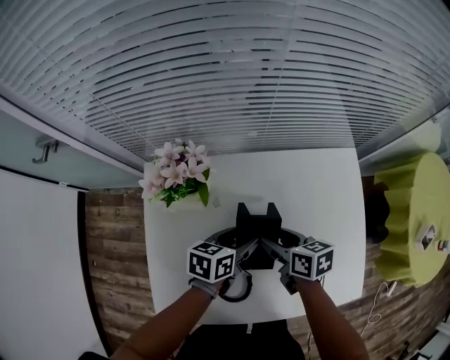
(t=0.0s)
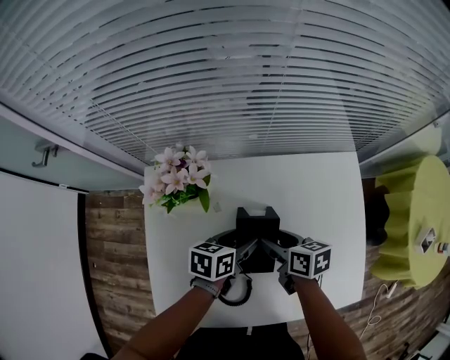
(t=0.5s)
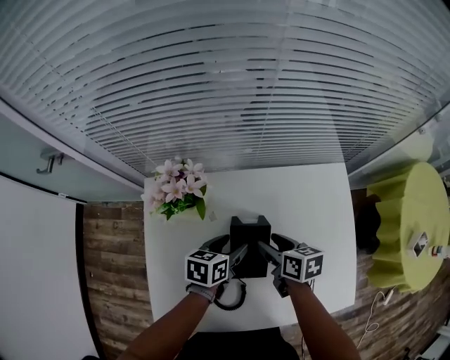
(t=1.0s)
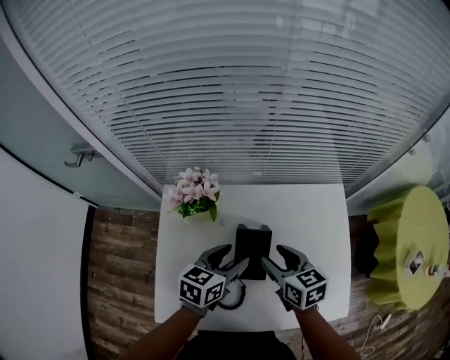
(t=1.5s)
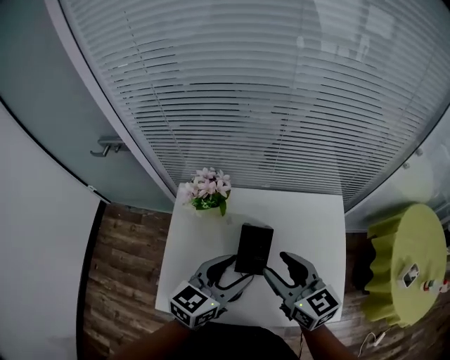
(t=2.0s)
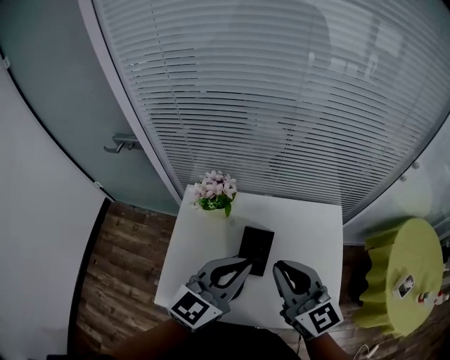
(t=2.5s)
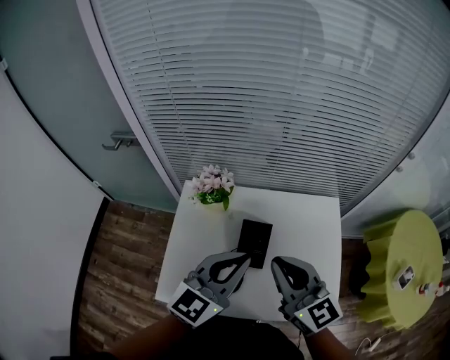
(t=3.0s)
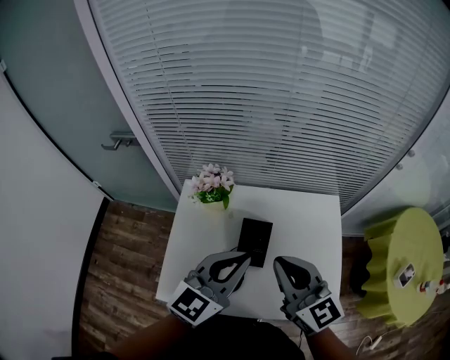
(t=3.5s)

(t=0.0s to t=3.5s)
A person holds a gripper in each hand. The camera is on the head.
t=0.0s - t=2.0s: The left gripper shifts some 25 cm upward and backward, and swivels about 30 degrees. The right gripper shifts roughly 25 cm upward, and rotates about 40 degrees.
t=2.0s - t=3.5s: The left gripper shifts approximately 10 cm upward, rotates about 20 degrees, and closes up; the right gripper moves upward and backward, approximately 10 cm, and closes up.

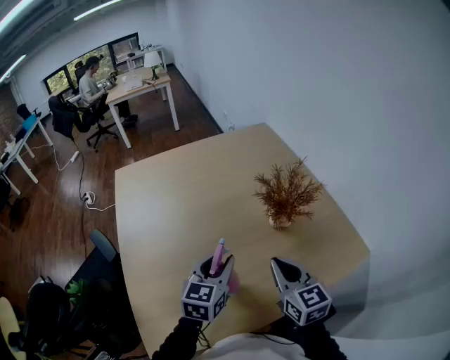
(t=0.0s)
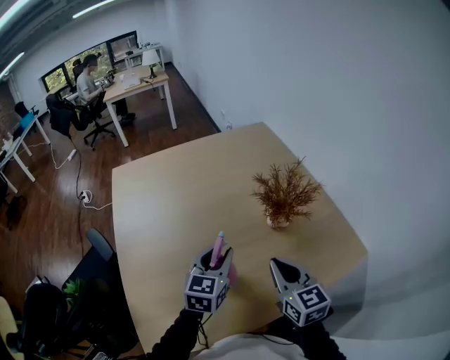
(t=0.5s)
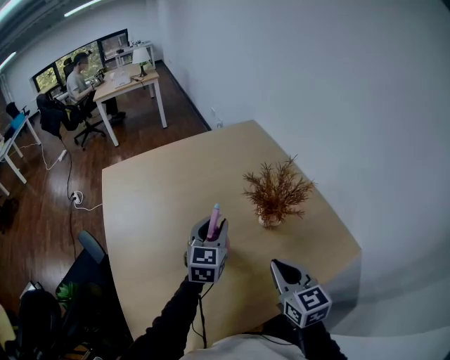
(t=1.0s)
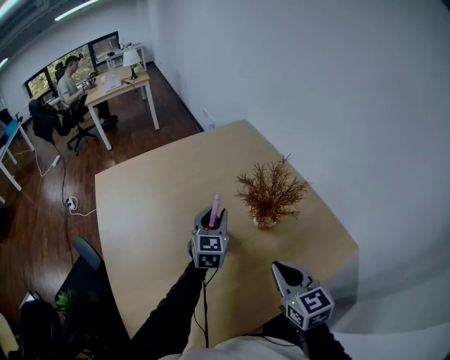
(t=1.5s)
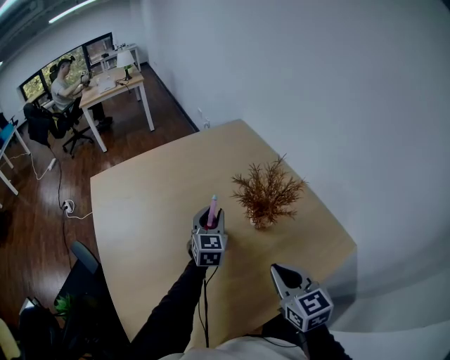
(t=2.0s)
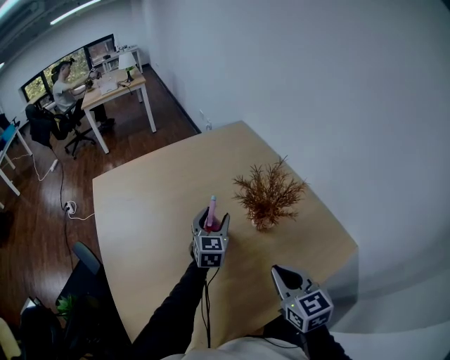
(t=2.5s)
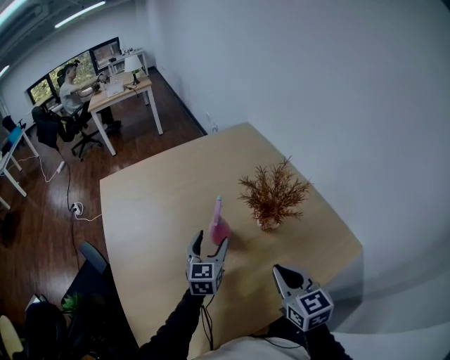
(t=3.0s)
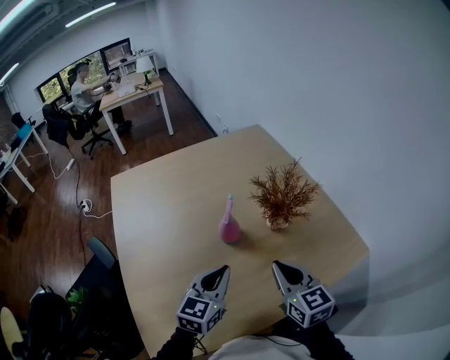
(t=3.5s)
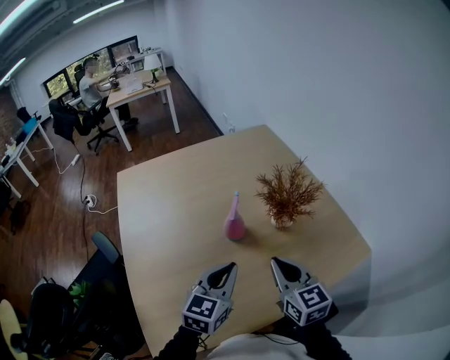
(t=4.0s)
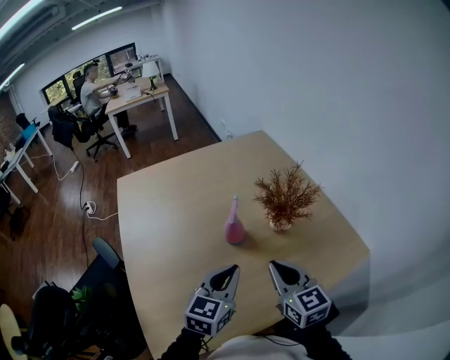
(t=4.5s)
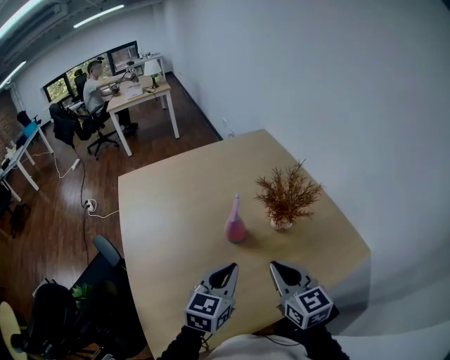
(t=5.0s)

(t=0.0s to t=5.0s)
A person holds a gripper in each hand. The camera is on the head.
t=0.0s - t=2.5s: The left gripper shifts roughly 20 cm forward, and opens its fingers.
t=2.5s - t=5.0s: The right gripper travels to the left by roughly 5 cm; the left gripper moves backward, approximately 25 cm, and closes up.

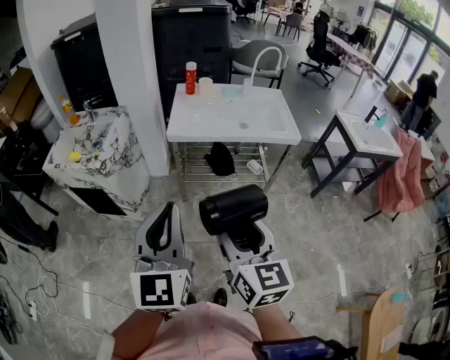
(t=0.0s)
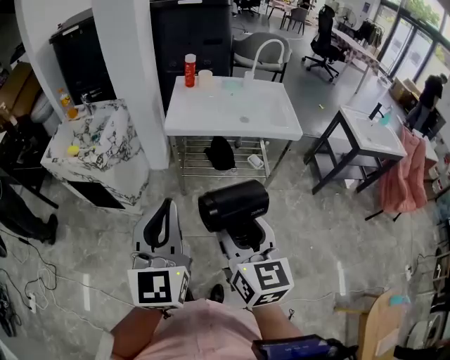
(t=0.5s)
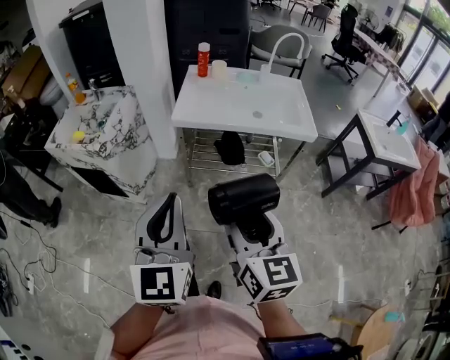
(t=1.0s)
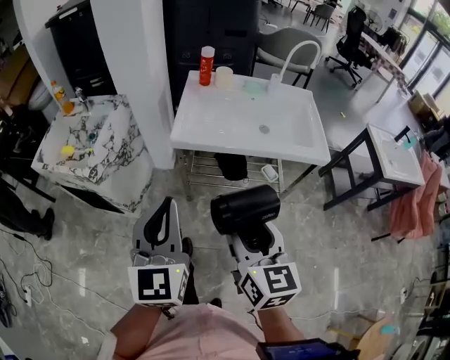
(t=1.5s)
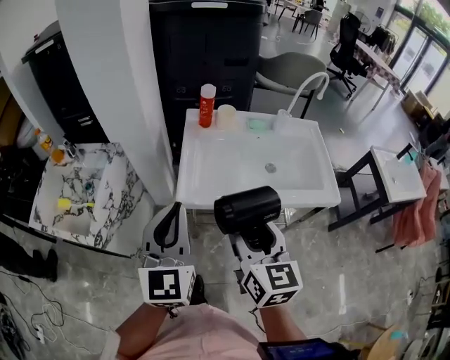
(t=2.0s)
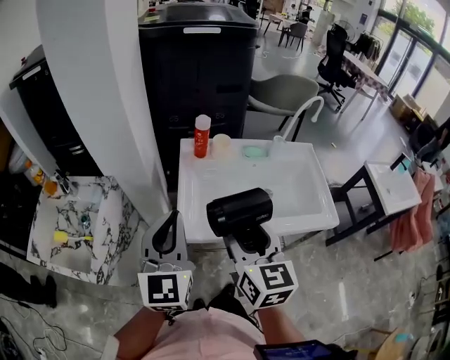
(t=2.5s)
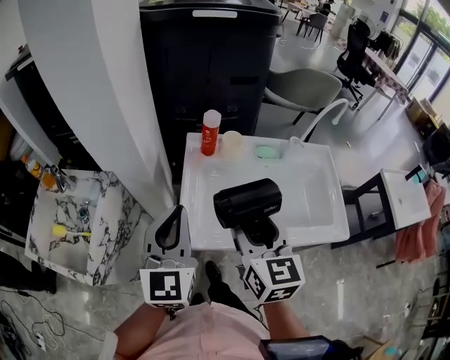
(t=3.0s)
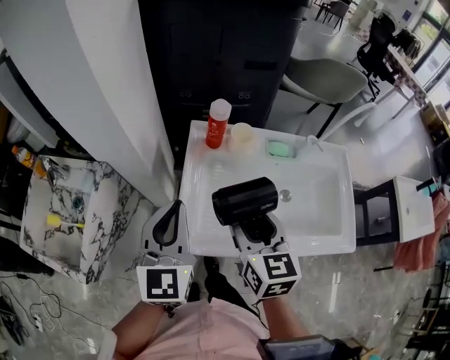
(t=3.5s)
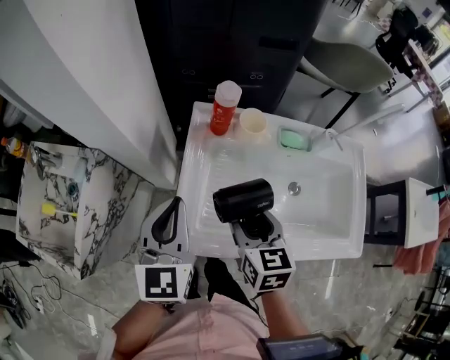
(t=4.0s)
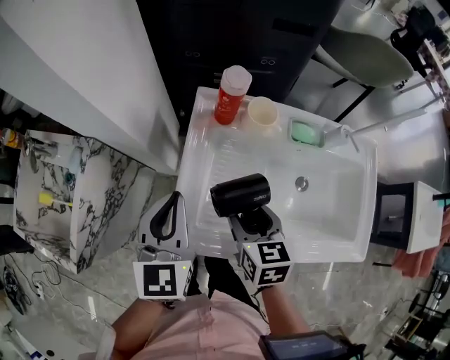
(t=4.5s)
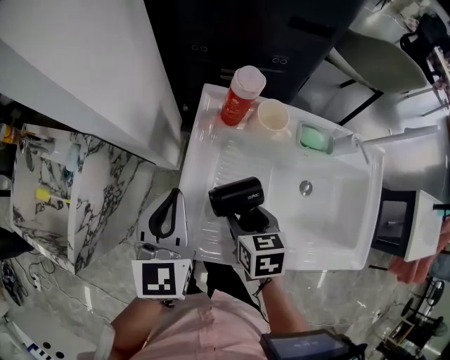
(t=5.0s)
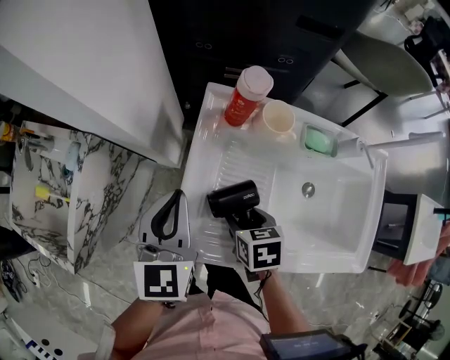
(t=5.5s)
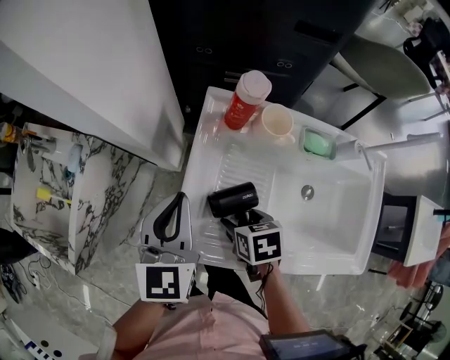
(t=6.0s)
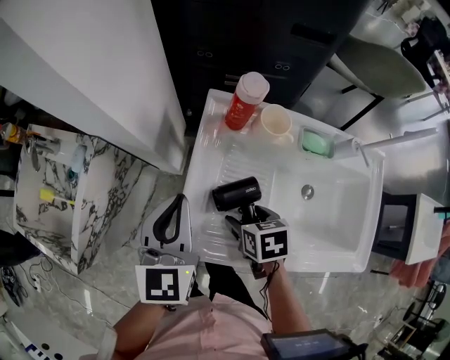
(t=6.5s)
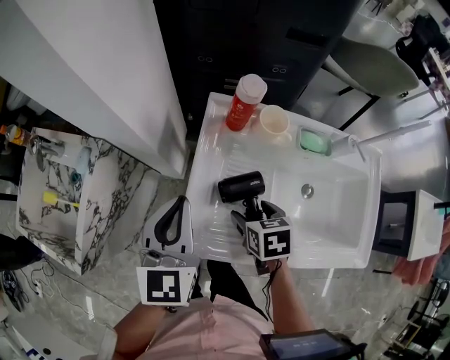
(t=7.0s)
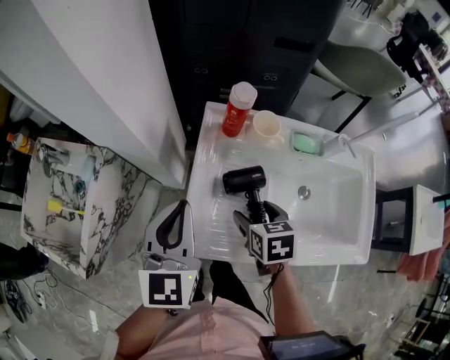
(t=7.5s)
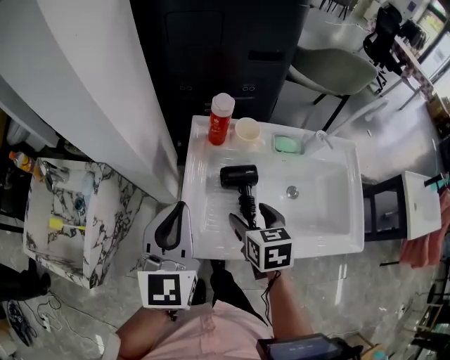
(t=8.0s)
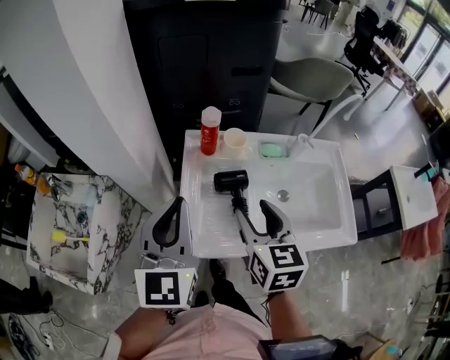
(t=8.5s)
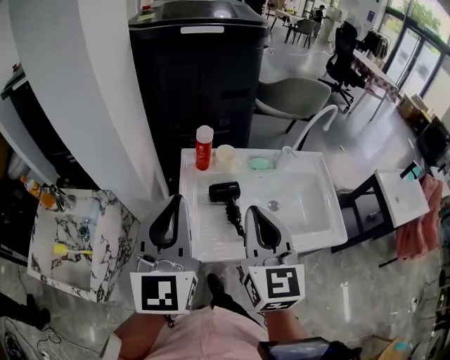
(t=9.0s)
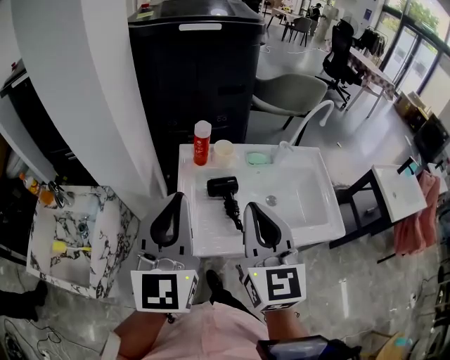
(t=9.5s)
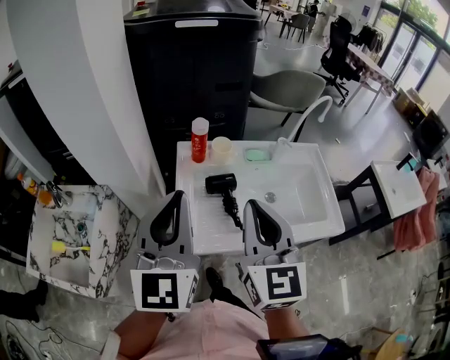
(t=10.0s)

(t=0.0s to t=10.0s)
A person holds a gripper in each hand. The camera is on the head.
t=0.0s - t=2.0s: Both grippers travel together forward, some 40 cm.
t=2.0s - t=4.0s: The two grippers go approximately 25 cm forward and downward. The right gripper changes its angle by some 20 degrees.
t=4.0s - t=6.0s: The left gripper shifts by approximately 5 cm; the right gripper goes approximately 15 cm downward, and turns by approximately 40 degrees.
t=6.0s - t=8.0s: The left gripper is displaced upward and backward by approximately 10 cm; the right gripper travels upward by about 10 cm, and changes its angle by about 30 degrees.
t=8.0s - t=10.0s: The left gripper is displaced upward and backward by about 15 cm, while the right gripper is displaced upward by some 25 cm, tilts its fingers roughly 40 degrees upward, and closes up.

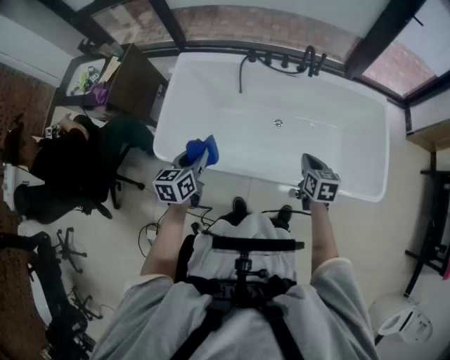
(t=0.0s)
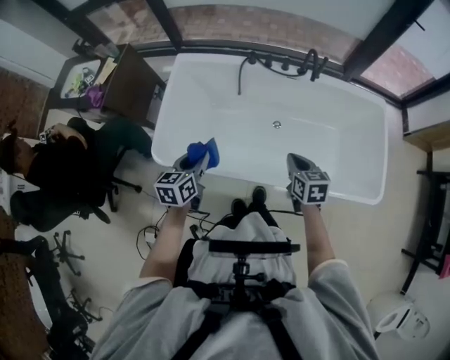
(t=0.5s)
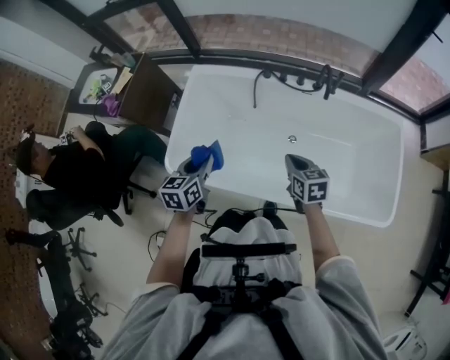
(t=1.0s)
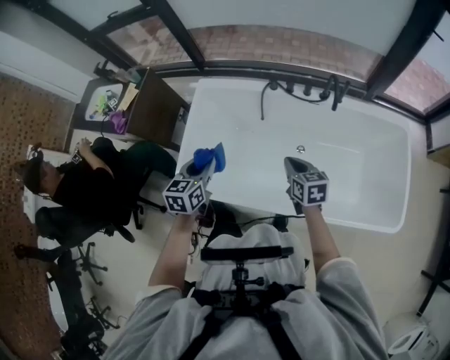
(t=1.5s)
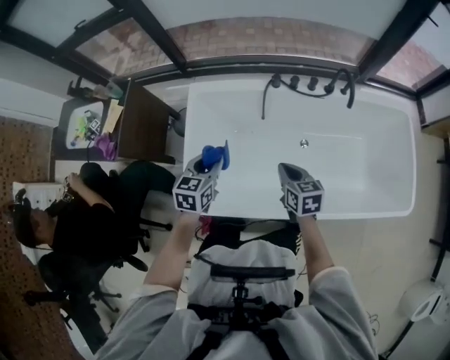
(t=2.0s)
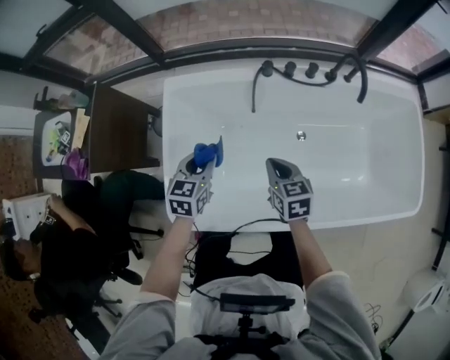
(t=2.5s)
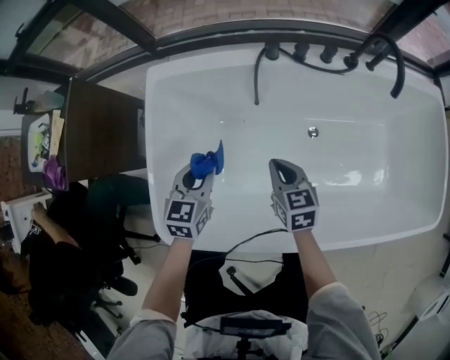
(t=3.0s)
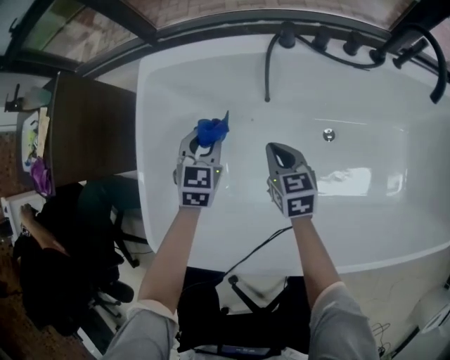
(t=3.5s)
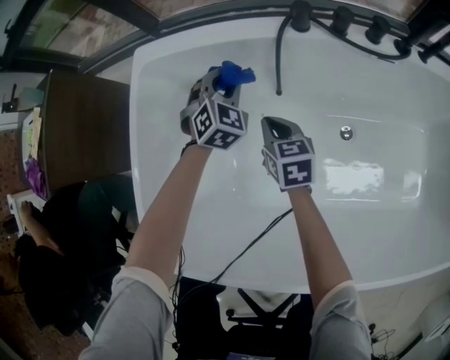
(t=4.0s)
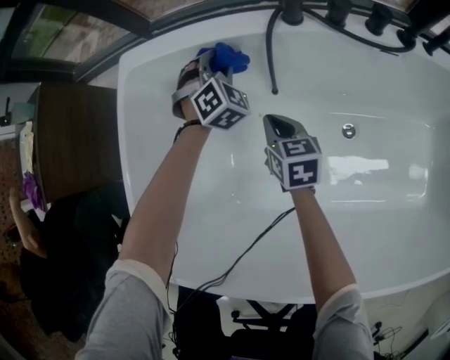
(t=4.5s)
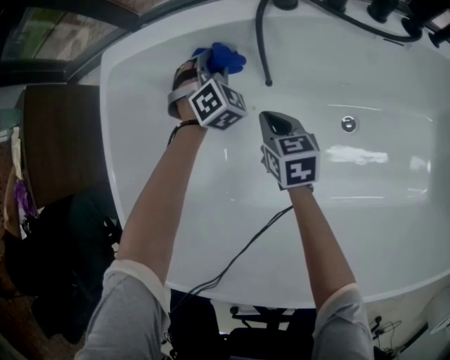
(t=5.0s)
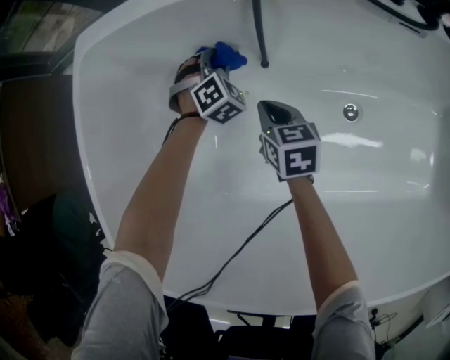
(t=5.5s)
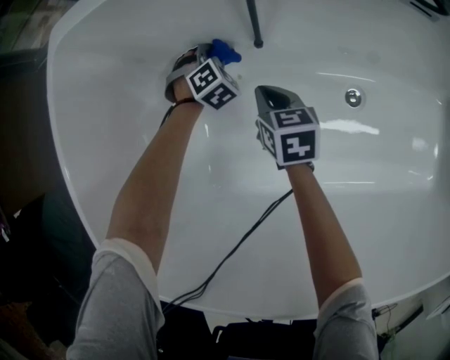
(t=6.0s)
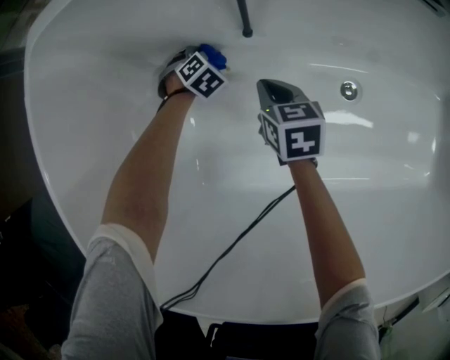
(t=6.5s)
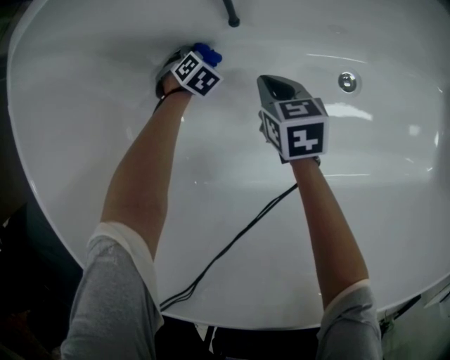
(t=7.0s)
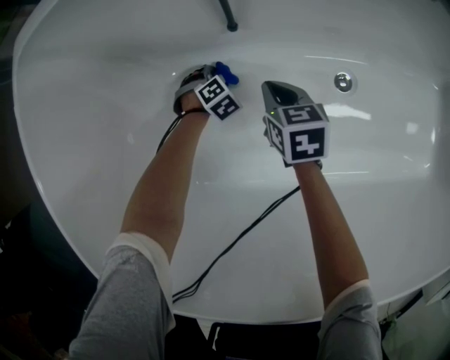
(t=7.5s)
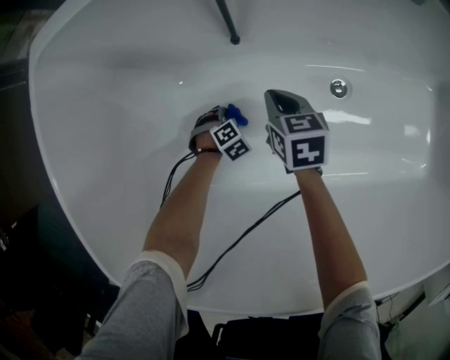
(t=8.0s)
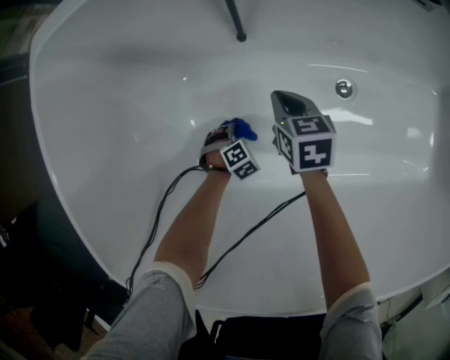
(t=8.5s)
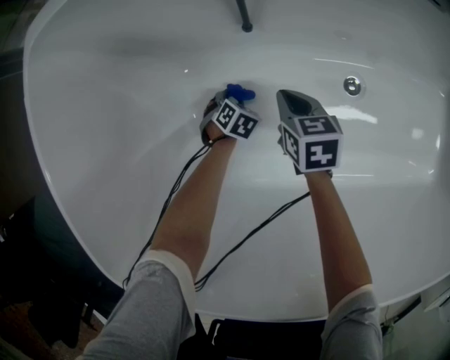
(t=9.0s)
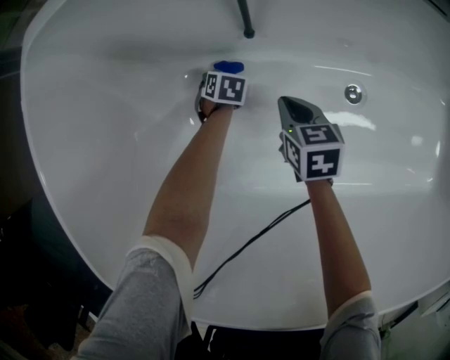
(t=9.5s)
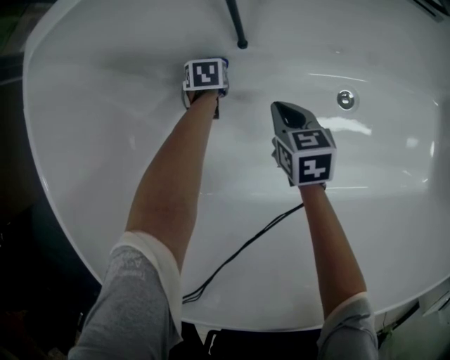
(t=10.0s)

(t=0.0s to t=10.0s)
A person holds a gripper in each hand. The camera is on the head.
t=0.0s - t=2.0s: The right gripper shifts roughly 35 cm to the left and forward. The left gripper goes some 30 cm forward and to the left.
t=2.0s - t=4.0s: Both grippers travel together downward and forward, about 50 cm. The left gripper rolls clockwise, seen from behind, by roughly 50 degrees.
t=4.0s - t=6.0s: The left gripper goes about 30 cm downward, and rotates some 20 degrees. The right gripper shifts some 15 cm downward.
t=6.0s - t=8.0s: The left gripper moves approximately 25 cm, and rotates some 20 degrees. The right gripper moves approximately 5 cm.
t=8.0s - t=10.0s: The left gripper changes place by some 20 cm, and rolls counterclockwise, seen from behind, by about 60 degrees.
